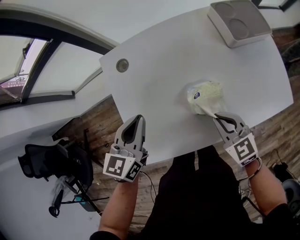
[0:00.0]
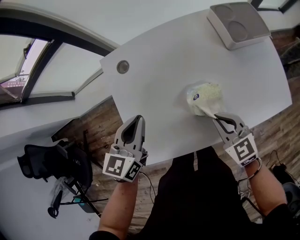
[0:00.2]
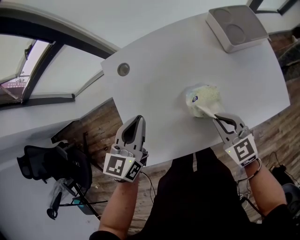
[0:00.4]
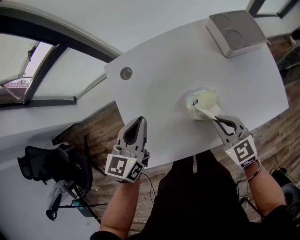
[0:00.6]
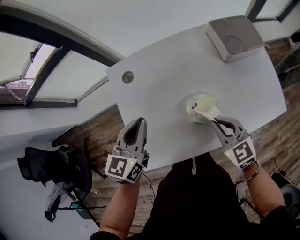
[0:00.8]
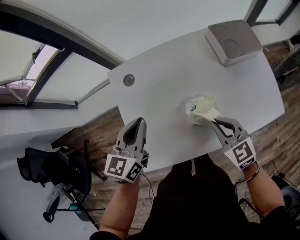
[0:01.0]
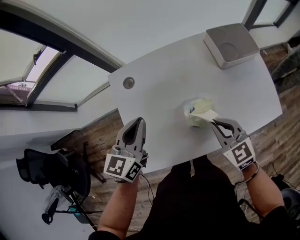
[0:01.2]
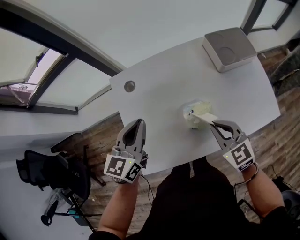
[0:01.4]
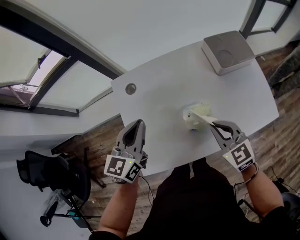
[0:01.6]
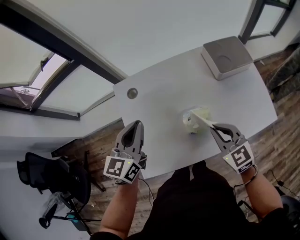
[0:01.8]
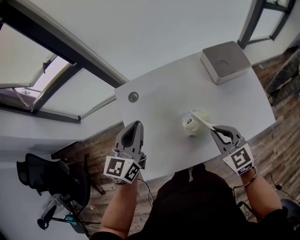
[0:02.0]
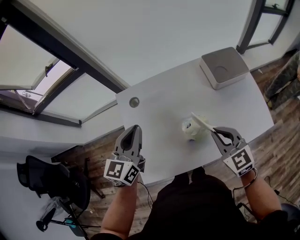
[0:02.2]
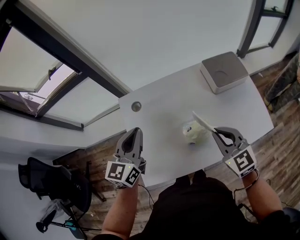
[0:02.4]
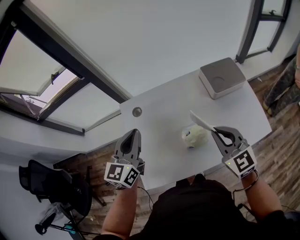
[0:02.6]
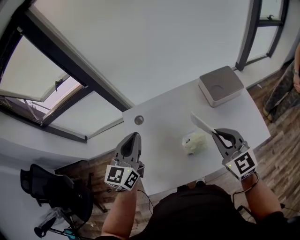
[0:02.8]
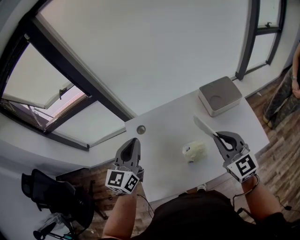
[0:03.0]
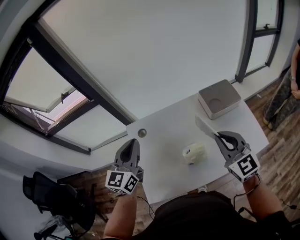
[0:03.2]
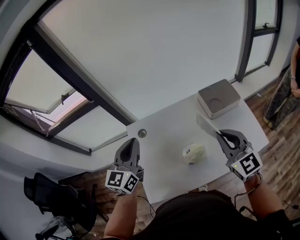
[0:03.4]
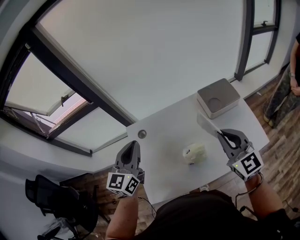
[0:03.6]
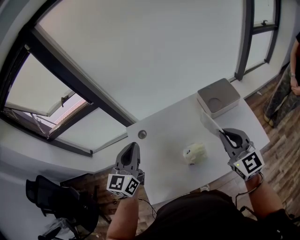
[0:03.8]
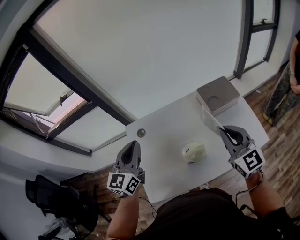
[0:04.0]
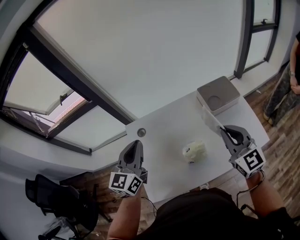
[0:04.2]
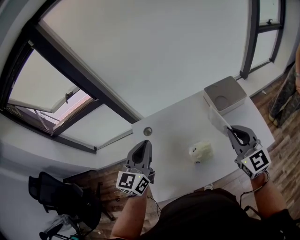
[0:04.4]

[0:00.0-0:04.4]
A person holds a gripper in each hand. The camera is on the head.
0:00.0 to 0:01.4: Both grippers move upward, roughly 10 cm.
0:01.4 to 0:03.0: Both grippers move upward, approximately 15 cm. The right gripper turns by roughly 20 degrees.
0:03.0 to 0:04.4: There are only small adjustments of the grippers.

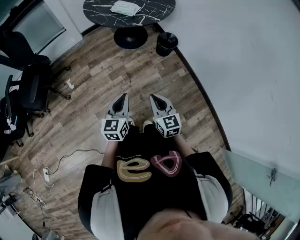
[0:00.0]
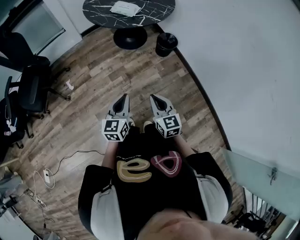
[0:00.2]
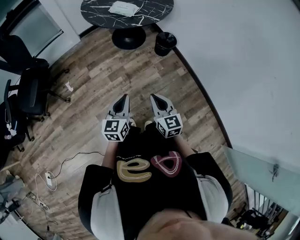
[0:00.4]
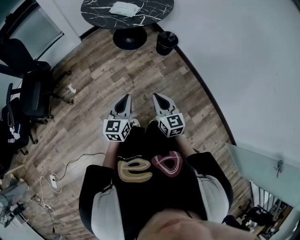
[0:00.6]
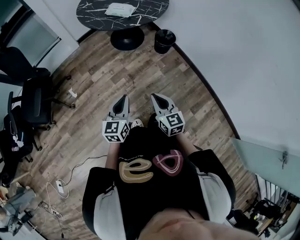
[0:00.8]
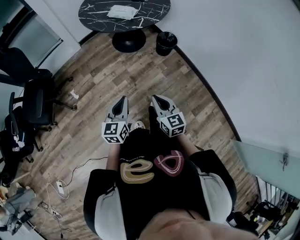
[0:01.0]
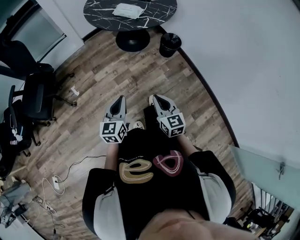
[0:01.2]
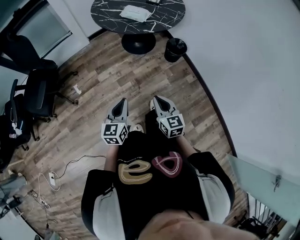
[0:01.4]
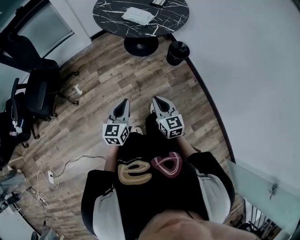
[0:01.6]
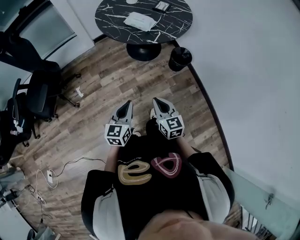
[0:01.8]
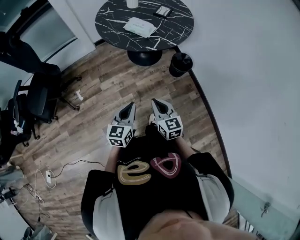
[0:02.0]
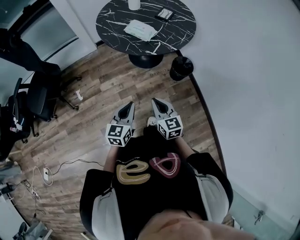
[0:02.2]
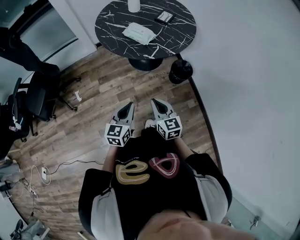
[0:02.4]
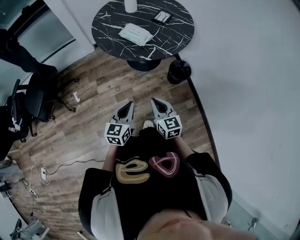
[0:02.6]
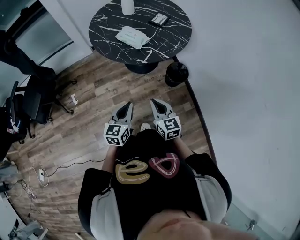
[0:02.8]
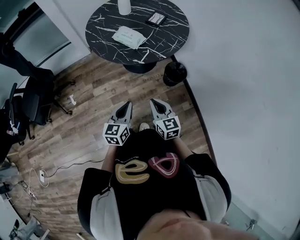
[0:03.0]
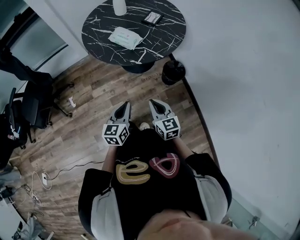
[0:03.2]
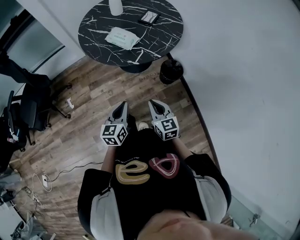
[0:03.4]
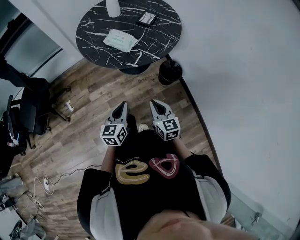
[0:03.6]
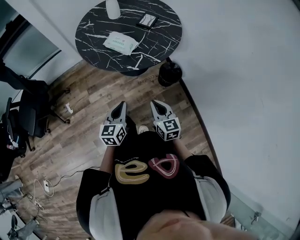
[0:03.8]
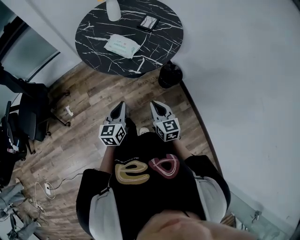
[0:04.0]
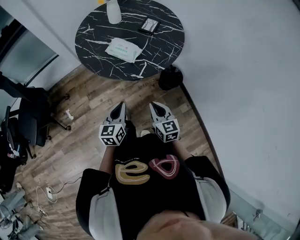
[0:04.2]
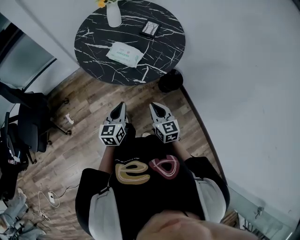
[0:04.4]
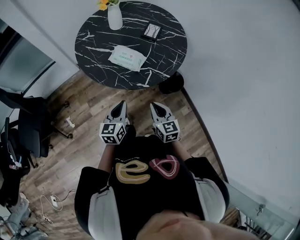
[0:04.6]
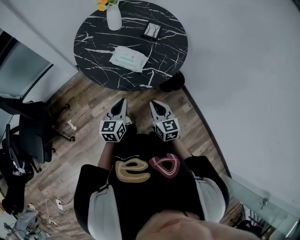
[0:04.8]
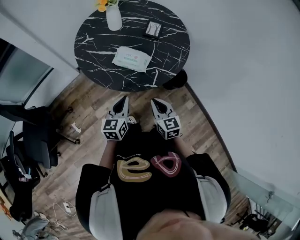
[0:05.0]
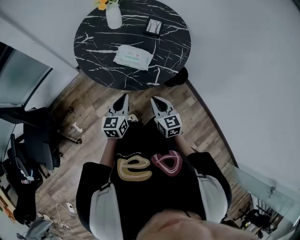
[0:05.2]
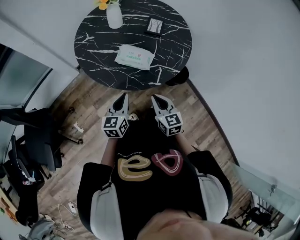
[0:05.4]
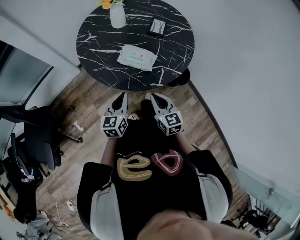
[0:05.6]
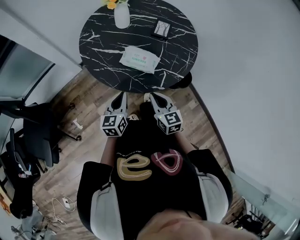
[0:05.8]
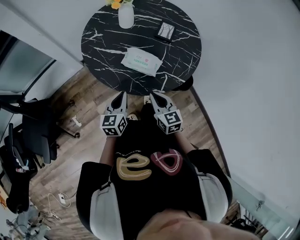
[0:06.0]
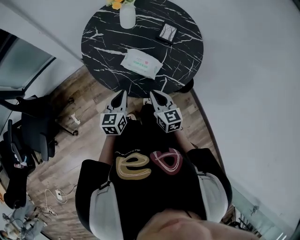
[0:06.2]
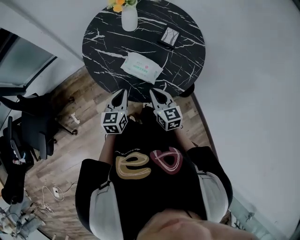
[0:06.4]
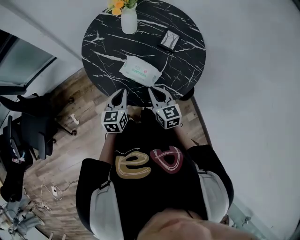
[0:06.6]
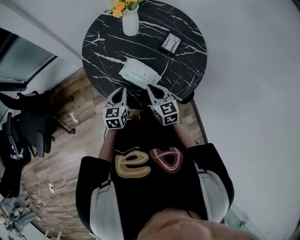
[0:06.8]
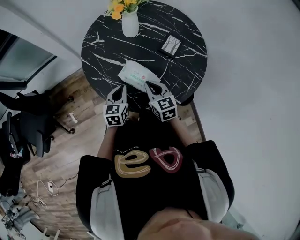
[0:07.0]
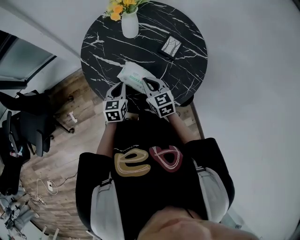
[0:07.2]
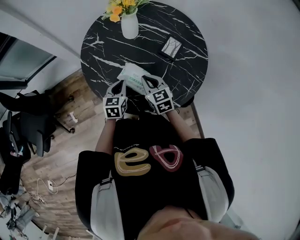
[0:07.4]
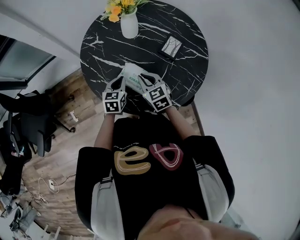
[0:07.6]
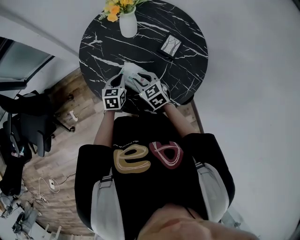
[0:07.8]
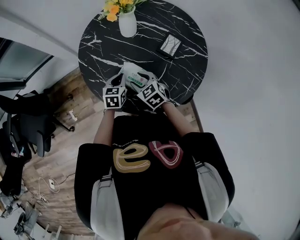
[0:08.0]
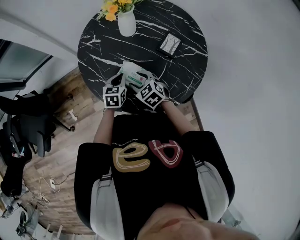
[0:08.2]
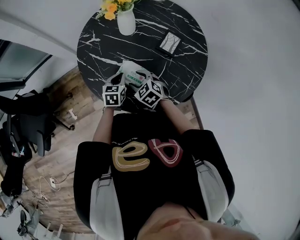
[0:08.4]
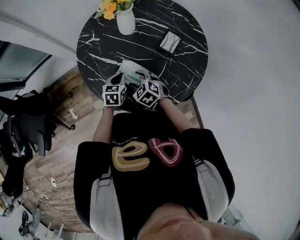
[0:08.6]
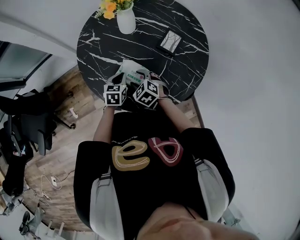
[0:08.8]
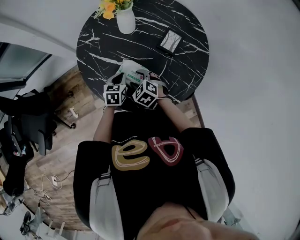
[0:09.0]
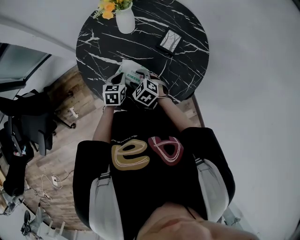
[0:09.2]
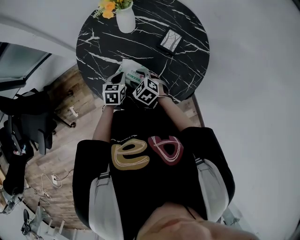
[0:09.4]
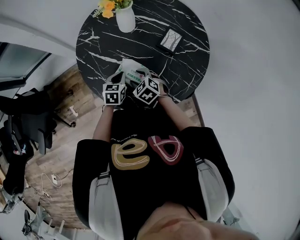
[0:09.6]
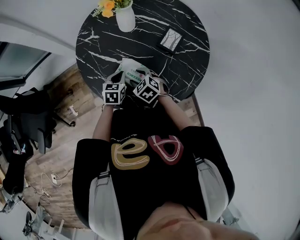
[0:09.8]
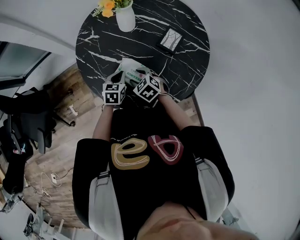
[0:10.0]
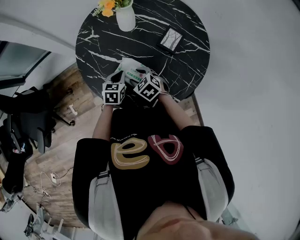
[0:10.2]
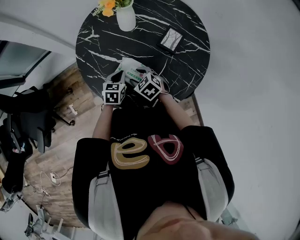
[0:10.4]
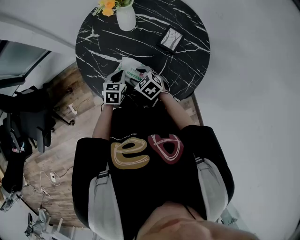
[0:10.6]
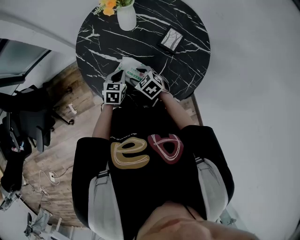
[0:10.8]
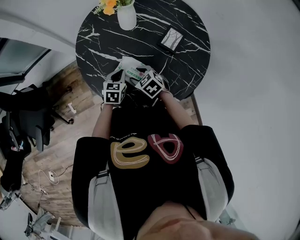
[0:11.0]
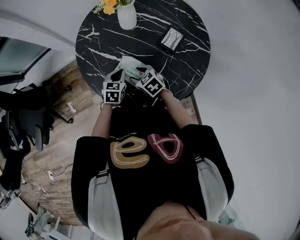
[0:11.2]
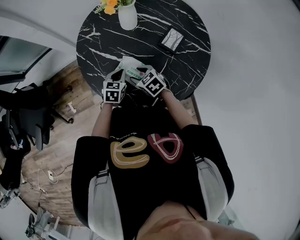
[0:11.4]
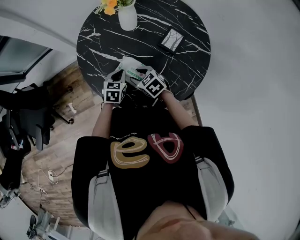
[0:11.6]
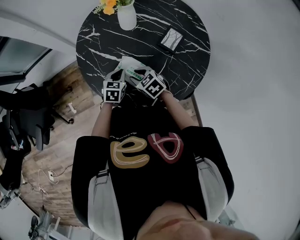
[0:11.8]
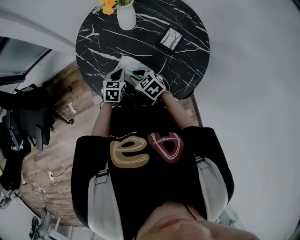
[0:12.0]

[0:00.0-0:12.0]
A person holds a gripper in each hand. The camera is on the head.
0:00.0 to 0:01.6: The right gripper moves forward, some 10 cm; the left gripper is displaced forward and to the left by roughly 10 cm.
0:01.6 to 0:03.0: The grippers both shift forward and to the right by about 25 cm.
0:03.0 to 0:04.4: The left gripper heads forward and to the left, covering approximately 15 cm, while the right gripper travels forward by approximately 10 cm.
0:04.4 to 0:06.0: The grippers both shift forward and to the left by approximately 20 cm.
0:06.0 to 0:07.6: The grippers both shift forward by some 20 cm. The right gripper turns by some 30 degrees.
0:07.6 to 0:09.0: The right gripper moves downward, about 5 cm, turns by about 30 degrees, and opens up.
0:09.0 to 0:10.4: The grippers stay close to where they were, moving slightly.
0:10.4 to 0:12.0: The right gripper closes up.

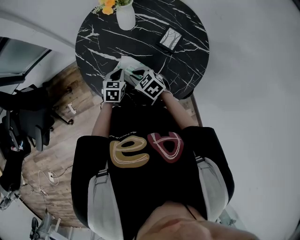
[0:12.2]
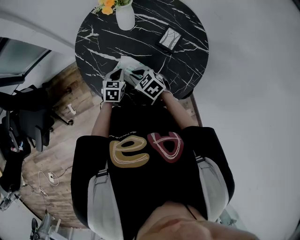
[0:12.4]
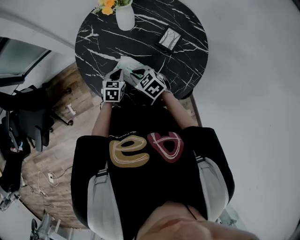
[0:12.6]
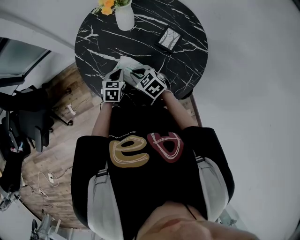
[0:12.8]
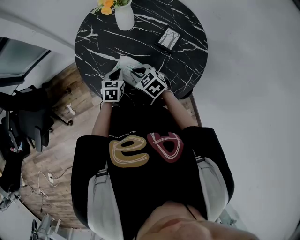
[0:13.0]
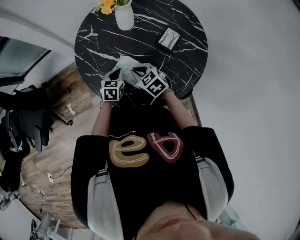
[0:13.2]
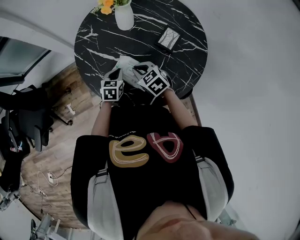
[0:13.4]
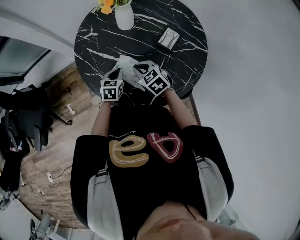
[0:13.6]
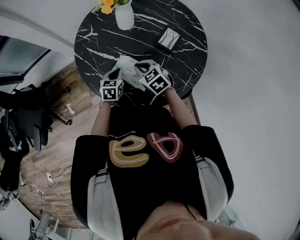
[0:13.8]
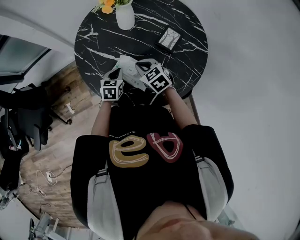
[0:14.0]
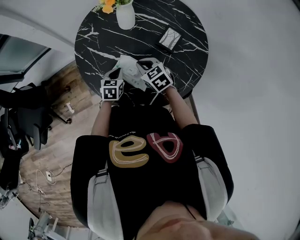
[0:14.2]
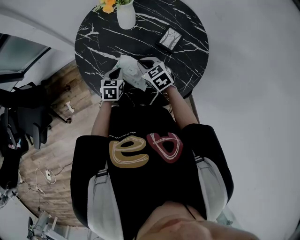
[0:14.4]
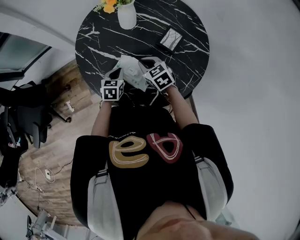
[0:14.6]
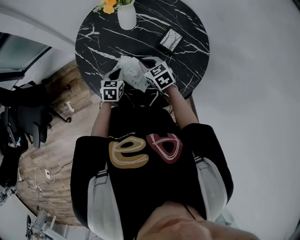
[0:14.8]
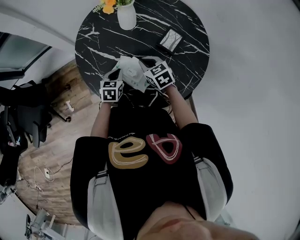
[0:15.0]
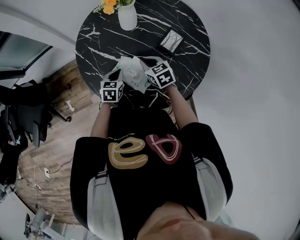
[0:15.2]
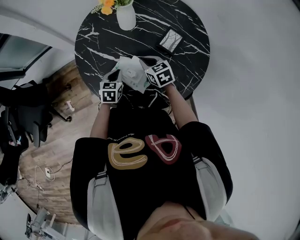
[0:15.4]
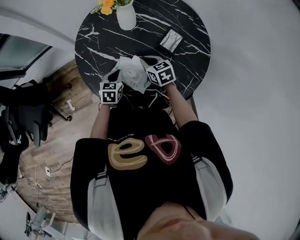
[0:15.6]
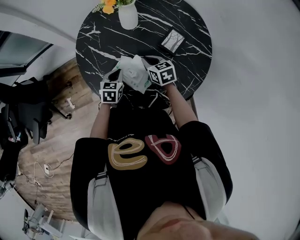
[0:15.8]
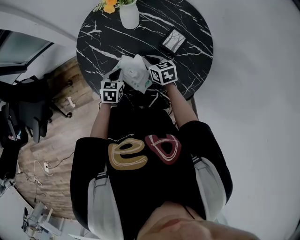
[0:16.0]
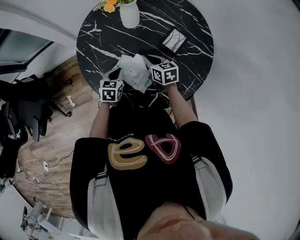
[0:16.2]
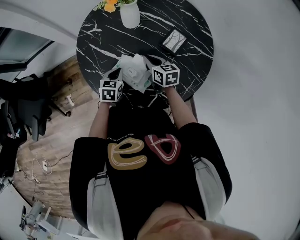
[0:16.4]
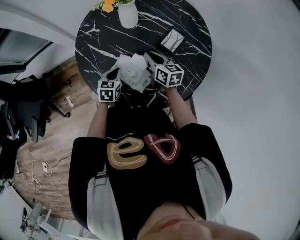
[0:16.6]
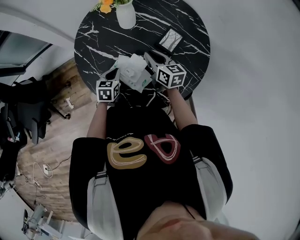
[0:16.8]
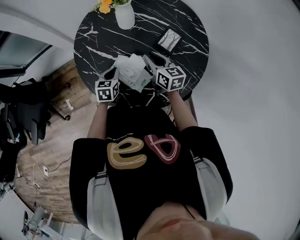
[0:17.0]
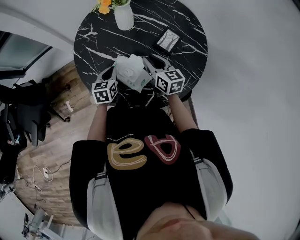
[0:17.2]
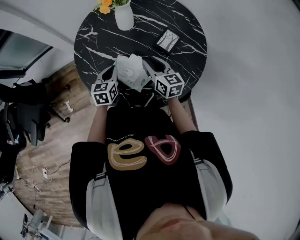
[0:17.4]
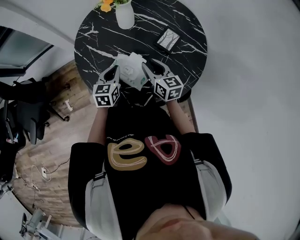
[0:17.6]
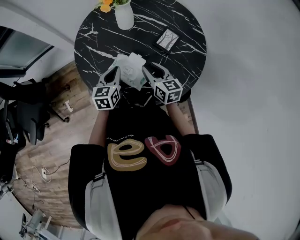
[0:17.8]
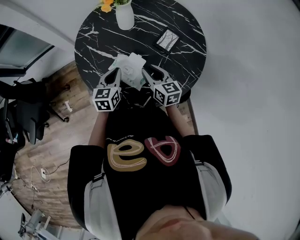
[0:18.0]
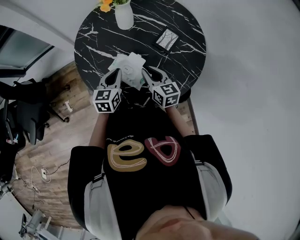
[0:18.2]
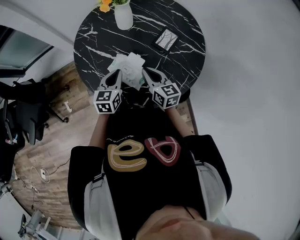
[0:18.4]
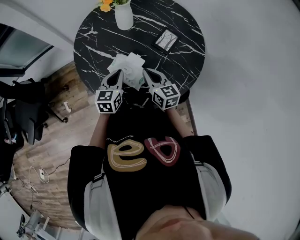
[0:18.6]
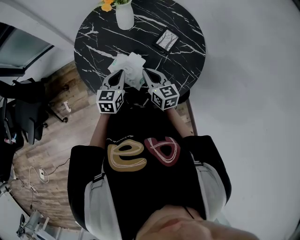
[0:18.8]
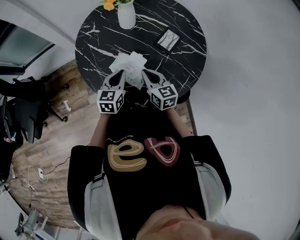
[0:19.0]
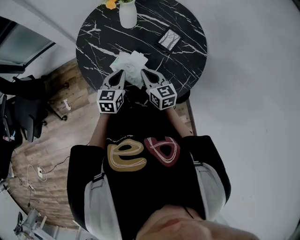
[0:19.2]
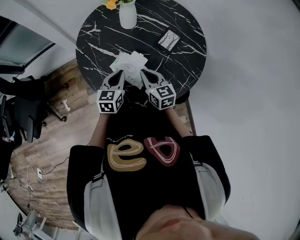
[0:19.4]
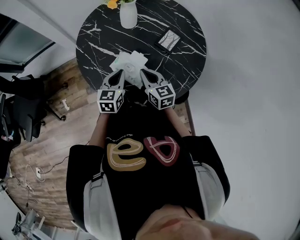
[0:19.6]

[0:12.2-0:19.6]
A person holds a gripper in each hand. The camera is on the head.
0:12.2 to 0:13.6: There are only small adjustments of the grippers.
0:13.6 to 0:15.2: The right gripper changes place by about 5 cm.
0:15.2 to 0:16.6: The right gripper swivels some 30 degrees.
0:16.6 to 0:18.2: The left gripper moves upward, approximately 10 cm; the right gripper is displaced backward by approximately 10 cm.
0:18.2 to 0:19.6: The grippers make only small movements.
